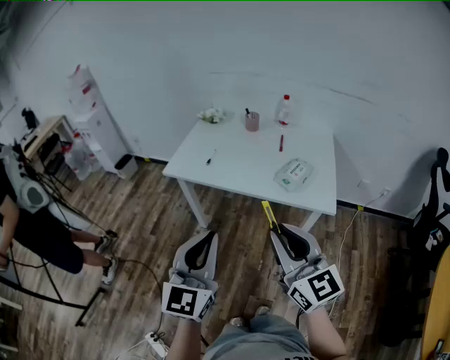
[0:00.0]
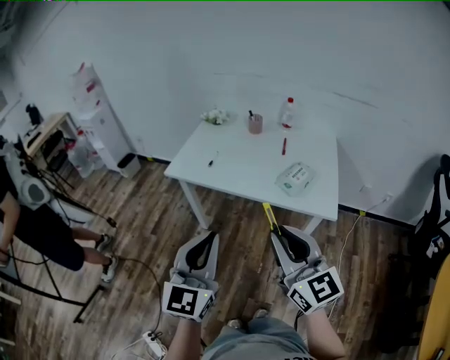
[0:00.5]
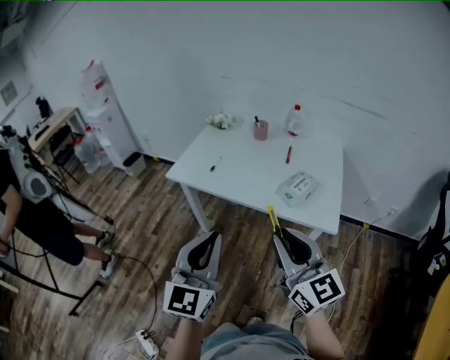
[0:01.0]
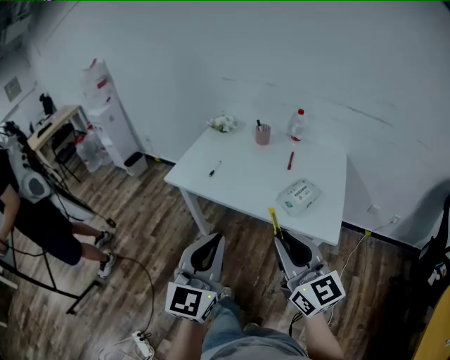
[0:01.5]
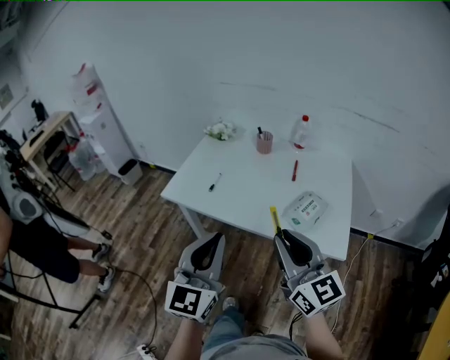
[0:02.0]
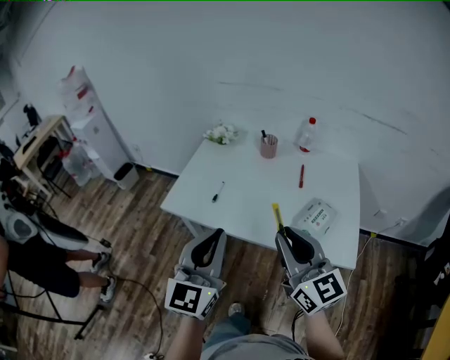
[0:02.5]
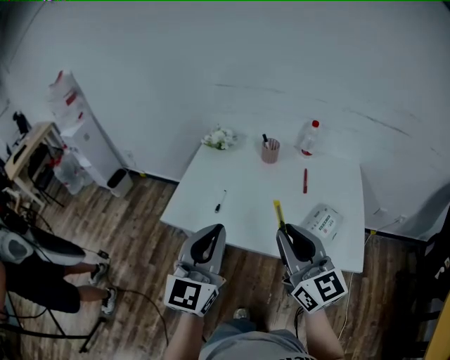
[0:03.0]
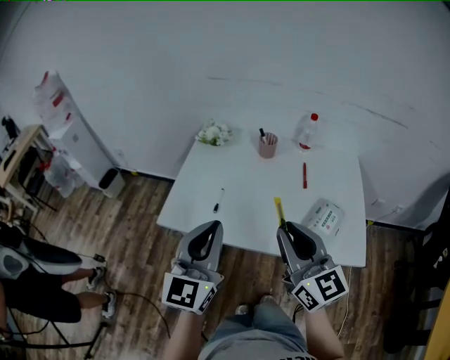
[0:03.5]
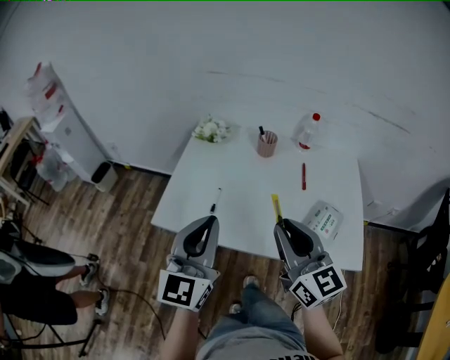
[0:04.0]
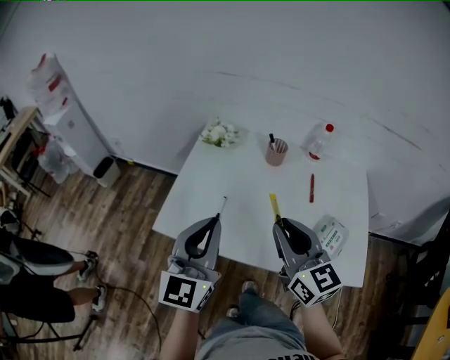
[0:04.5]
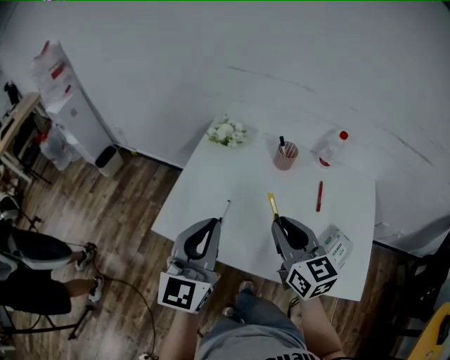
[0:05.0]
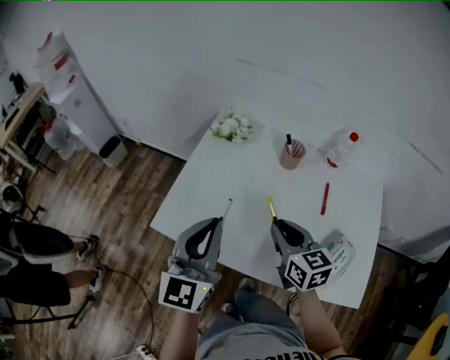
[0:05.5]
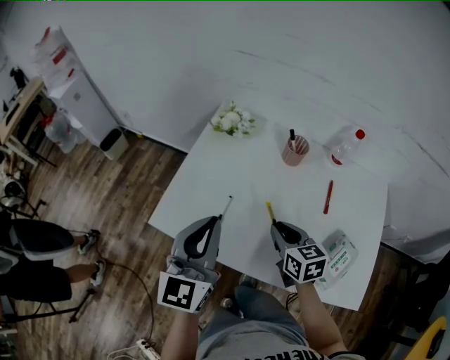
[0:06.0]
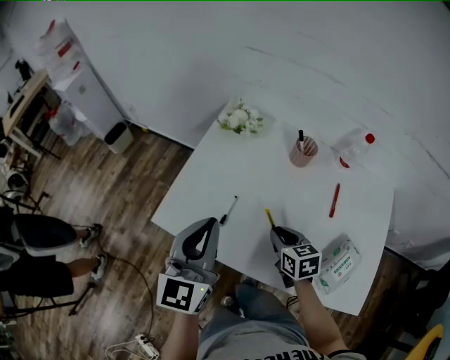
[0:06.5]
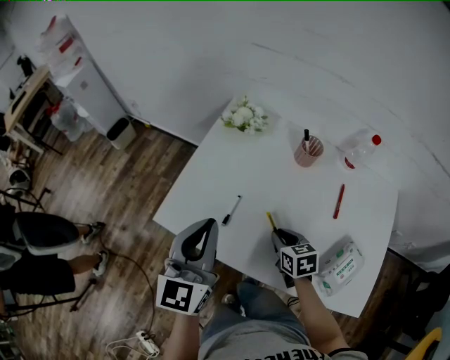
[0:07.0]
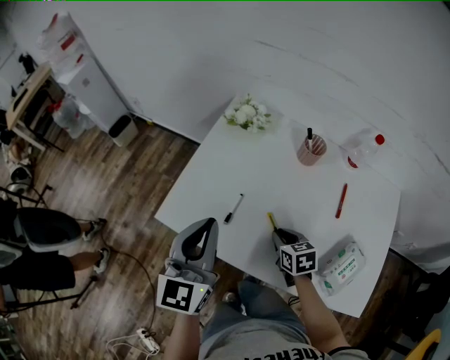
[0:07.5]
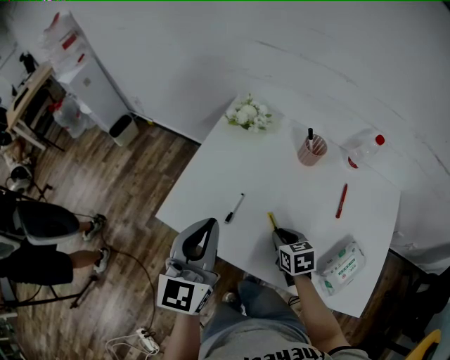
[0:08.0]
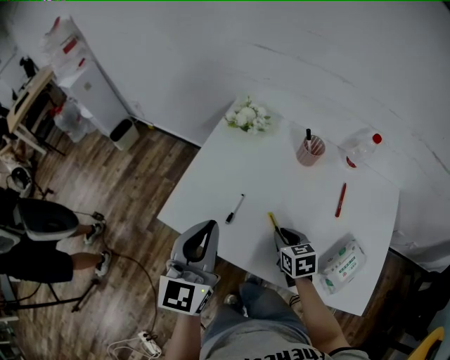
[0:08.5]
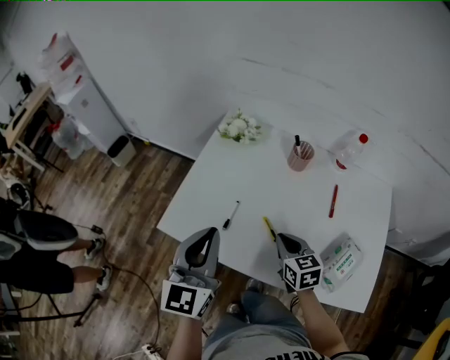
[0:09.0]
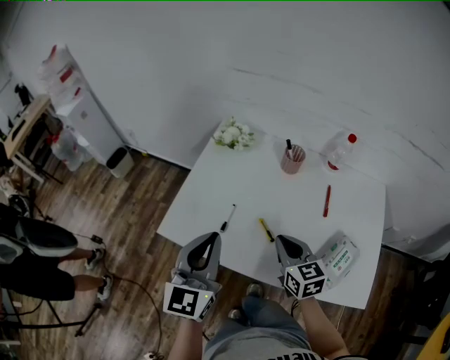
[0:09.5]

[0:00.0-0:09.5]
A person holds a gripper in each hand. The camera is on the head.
0:00.0 to 0:02.0: Both grippers travel together forward, about 15 cm.
0:02.0 to 0:04.0: The two grippers go roughly 20 cm forward and to the left.
0:04.0 to 0:05.5: The right gripper moves forward and downward, approximately 20 cm, and turns by about 30 degrees. The left gripper shifts approximately 10 cm forward.
0:05.5 to 0:07.5: The right gripper is displaced downward by approximately 15 cm, and turns by roughly 30 degrees.
0:07.5 to 0:09.5: The right gripper goes about 10 cm upward, and swivels about 30 degrees.

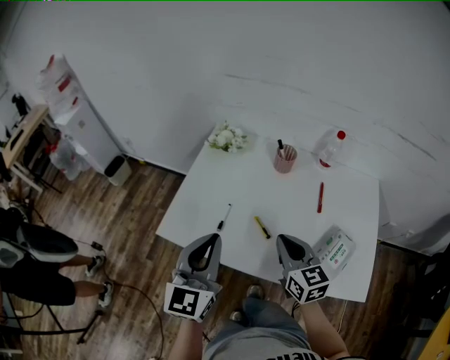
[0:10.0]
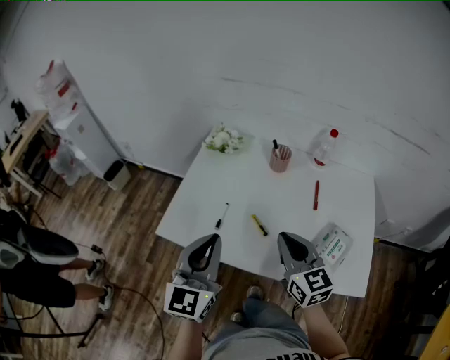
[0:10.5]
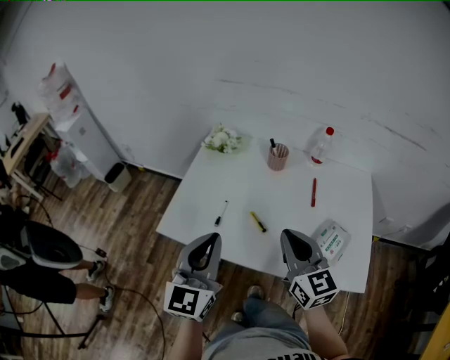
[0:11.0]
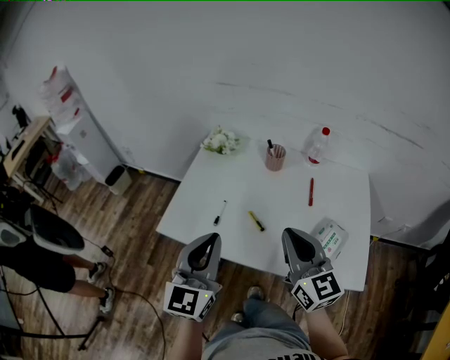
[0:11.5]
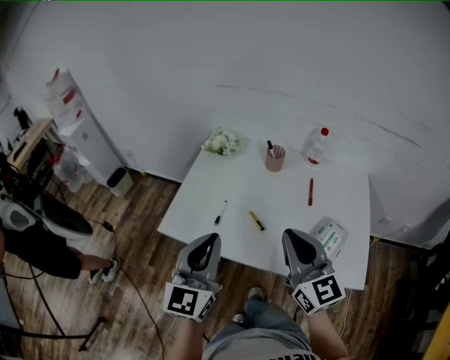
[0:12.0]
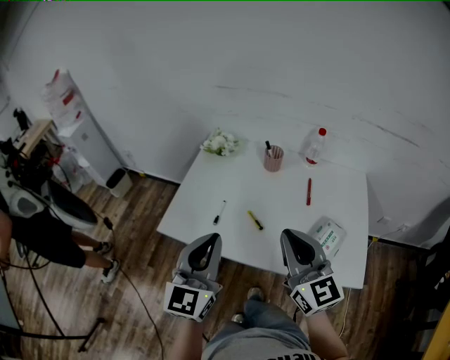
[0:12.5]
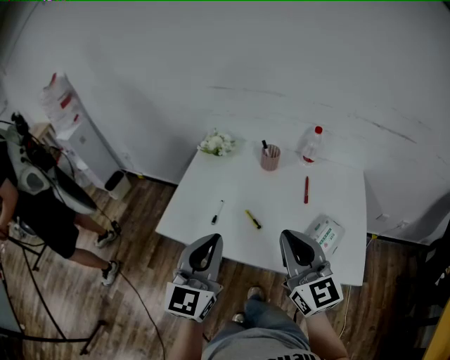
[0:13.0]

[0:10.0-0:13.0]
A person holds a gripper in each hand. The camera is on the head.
0:10.0 to 0:11.5: The left gripper changes place by some 5 cm; the right gripper is displaced upward and backward by some 15 cm.
0:11.5 to 0:13.0: The grippers move only a little.

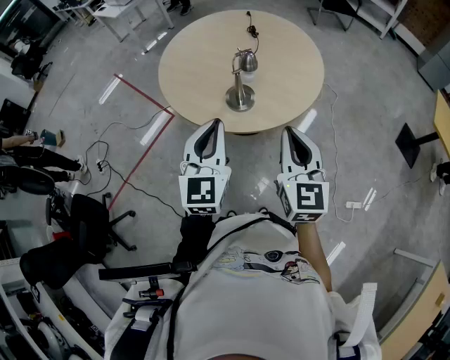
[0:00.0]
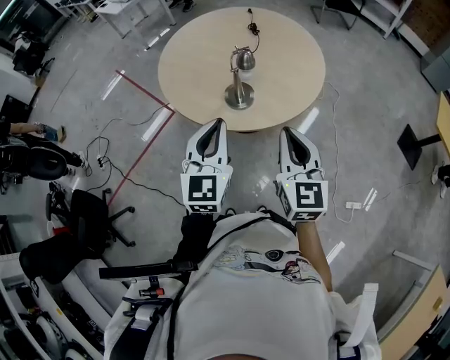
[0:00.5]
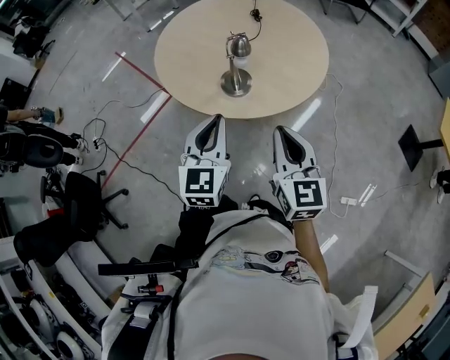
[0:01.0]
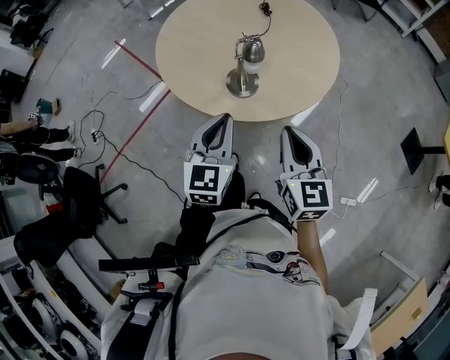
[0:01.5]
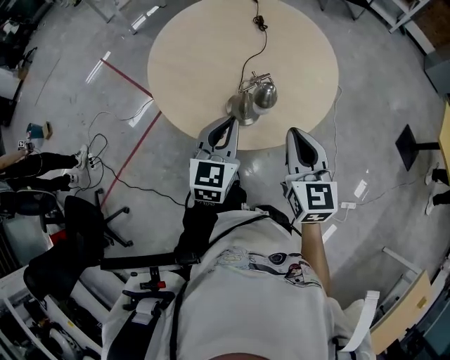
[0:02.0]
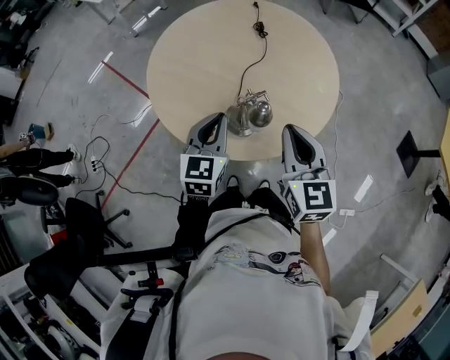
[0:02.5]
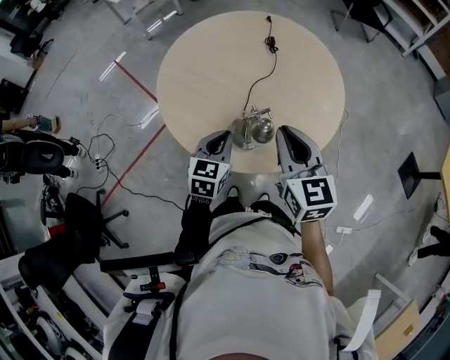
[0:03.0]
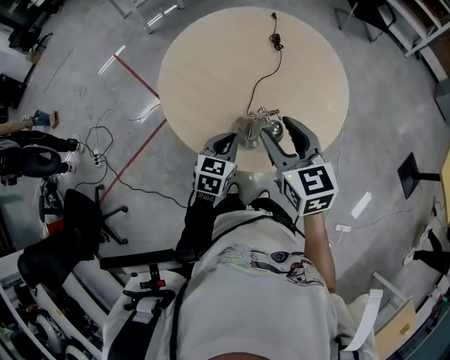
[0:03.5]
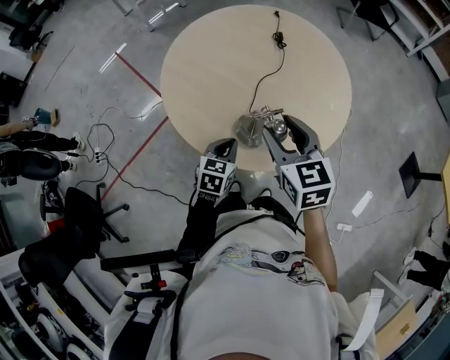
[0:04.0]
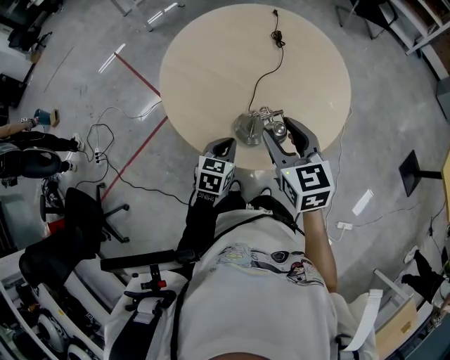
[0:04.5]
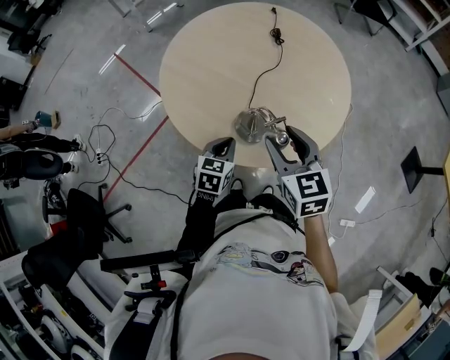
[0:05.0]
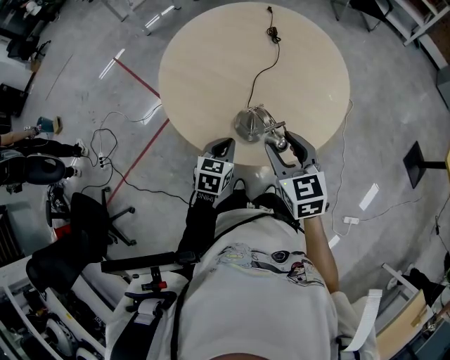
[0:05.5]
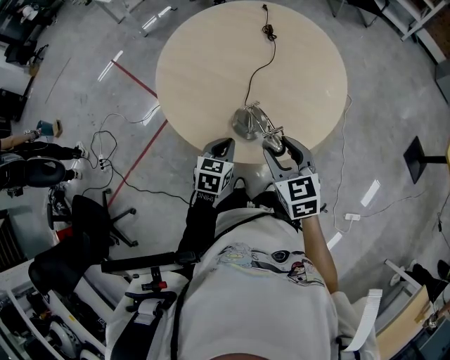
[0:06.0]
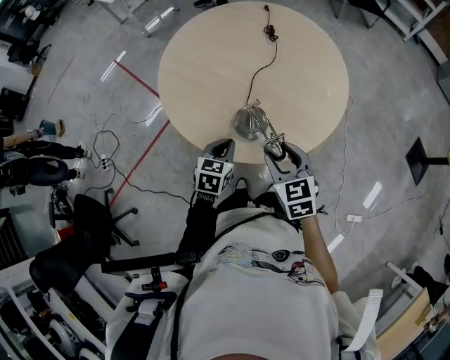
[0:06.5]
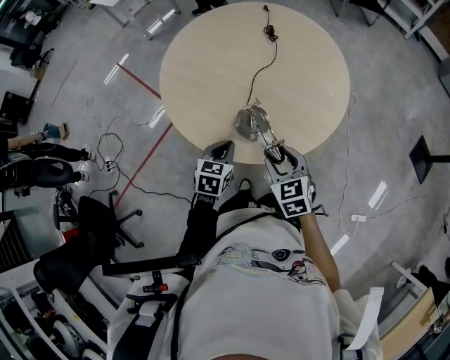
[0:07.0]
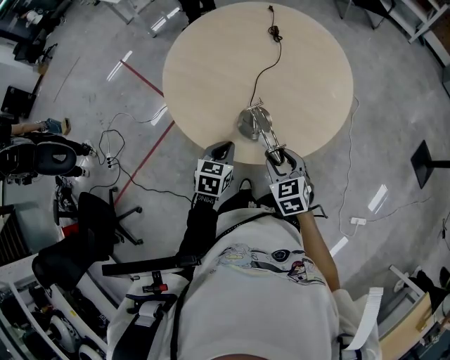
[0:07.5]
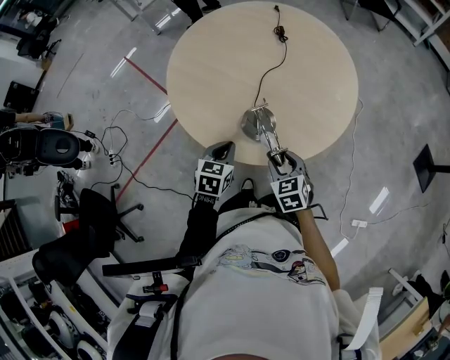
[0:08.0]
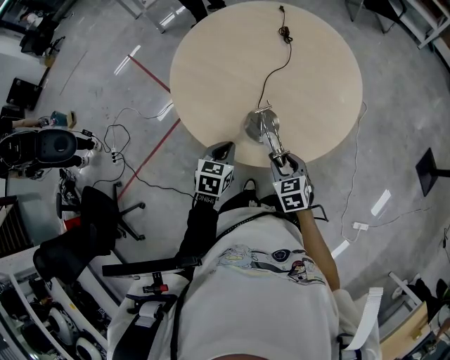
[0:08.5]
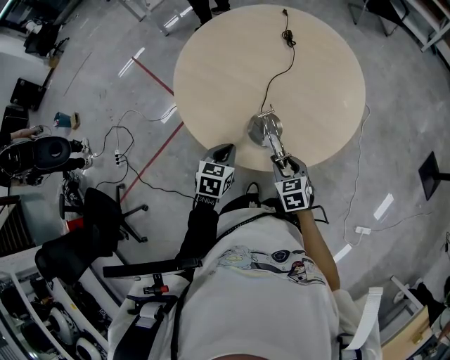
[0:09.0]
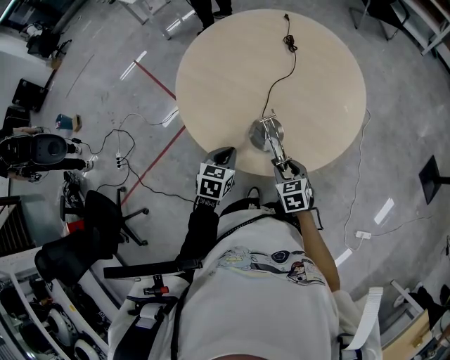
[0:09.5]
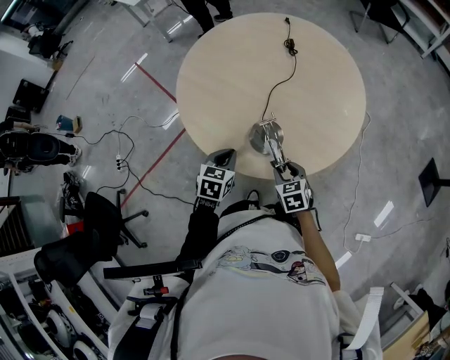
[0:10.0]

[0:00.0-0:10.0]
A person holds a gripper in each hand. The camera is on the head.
0:00.0 to 0:02.0: The left gripper is displaced forward and downward by roughly 20 cm; the right gripper goes roughly 15 cm forward.
0:02.0 to 0:04.0: The left gripper goes approximately 15 cm downward, and turns by roughly 20 degrees. The right gripper is displaced forward and to the left by roughly 10 cm, and opens.
0:04.0 to 0:06.0: The right gripper goes about 10 cm downward and backward.
0:06.0 to 0:08.0: The right gripper goes roughly 15 cm downward.
0:08.0 to 0:10.0: The right gripper travels downward by some 5 cm.

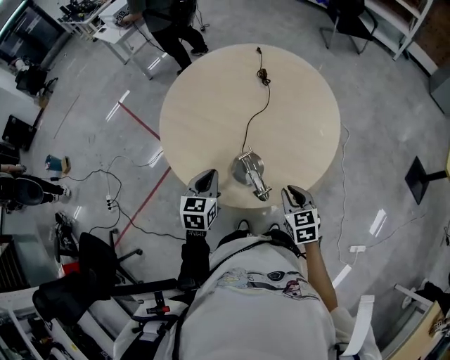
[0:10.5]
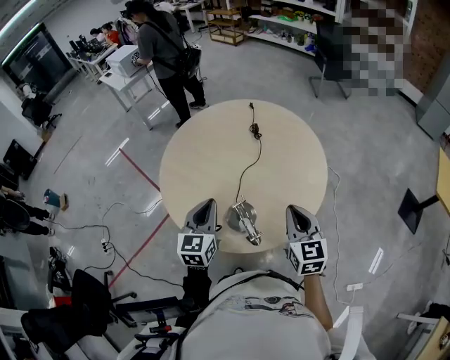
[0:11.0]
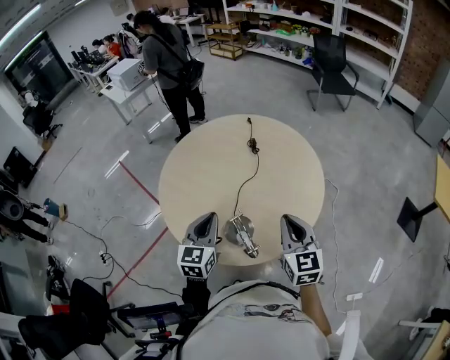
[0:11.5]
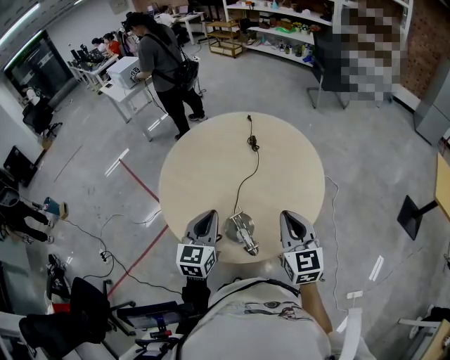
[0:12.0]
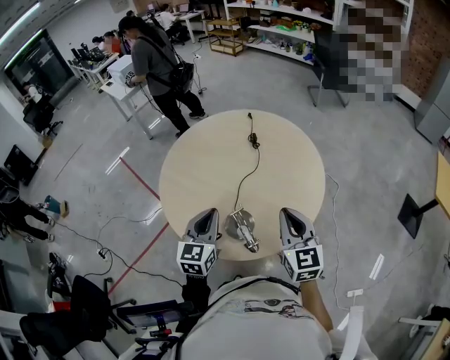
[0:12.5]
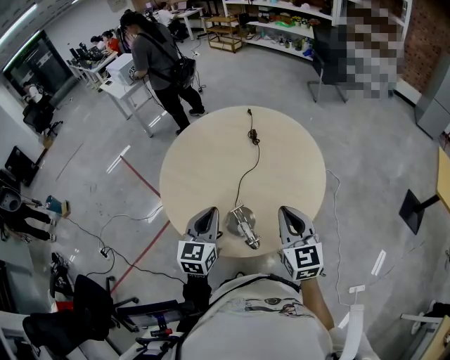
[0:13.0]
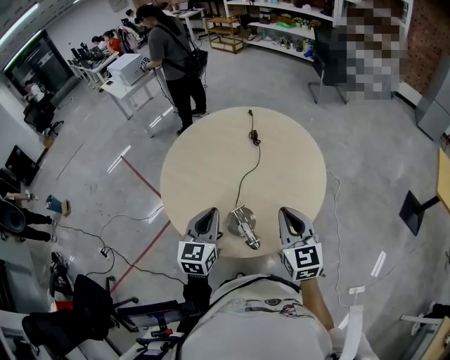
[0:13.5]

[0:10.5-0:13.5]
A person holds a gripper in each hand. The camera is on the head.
0:10.5 to 0:12.0: The right gripper is displaced upward by about 20 cm, and swivels roughly 30 degrees; the left gripper travels upward by roughly 10 cm.
0:12.0 to 0:13.5: Both grippers stay put.

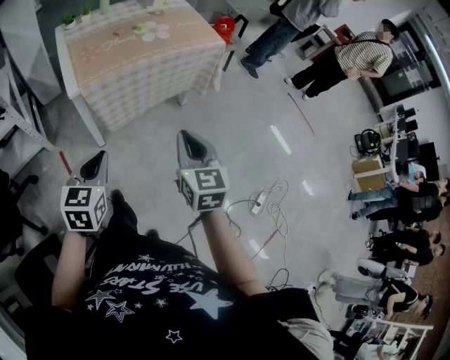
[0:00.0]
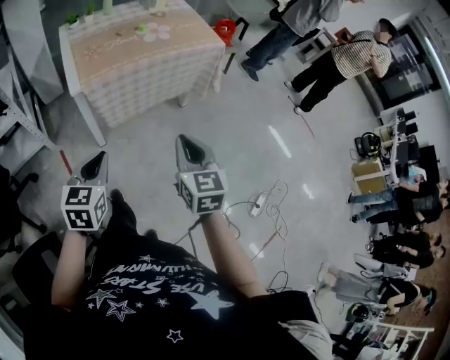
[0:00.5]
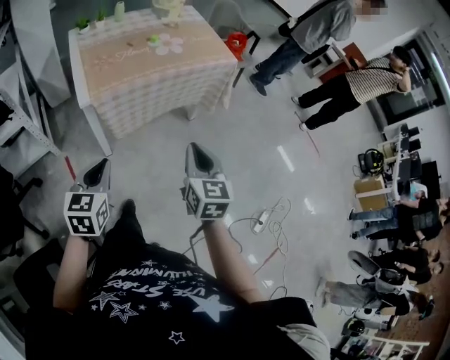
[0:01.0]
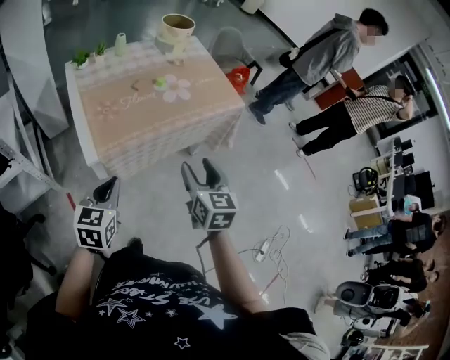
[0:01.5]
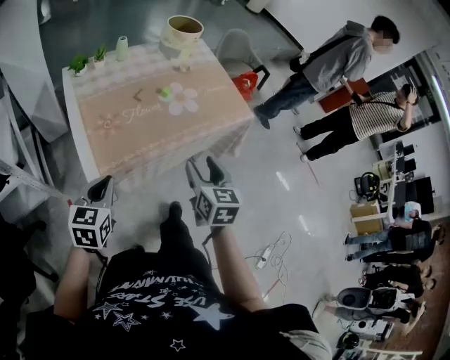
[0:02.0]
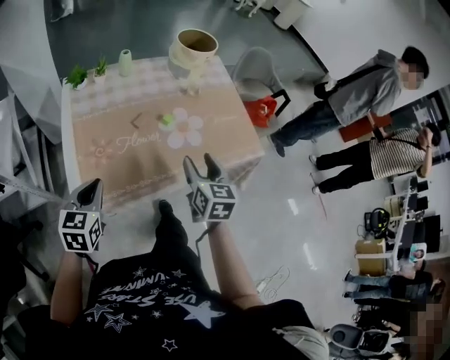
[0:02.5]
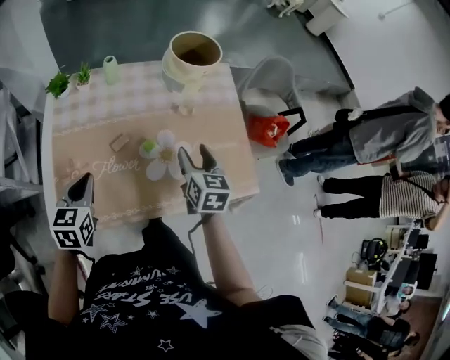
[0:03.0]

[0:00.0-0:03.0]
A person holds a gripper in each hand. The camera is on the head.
0:00.0 to 0:01.5: The right gripper travels forward by about 20 cm, and opens its fingers. Meanwhile the left gripper shifts roughly 20 cm forward and to the left.
0:01.5 to 0:03.0: Both grippers travel together forward, roughly 40 cm. The left gripper rotates roughly 30 degrees.
